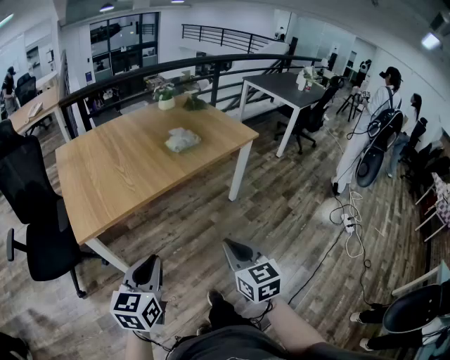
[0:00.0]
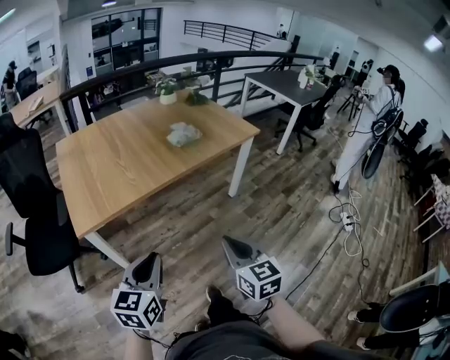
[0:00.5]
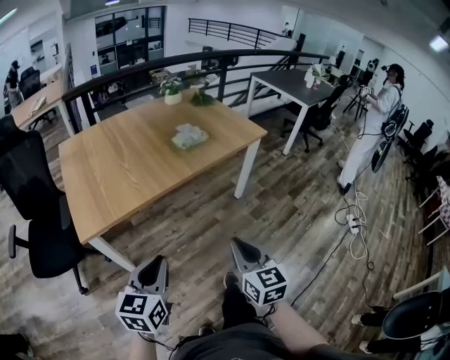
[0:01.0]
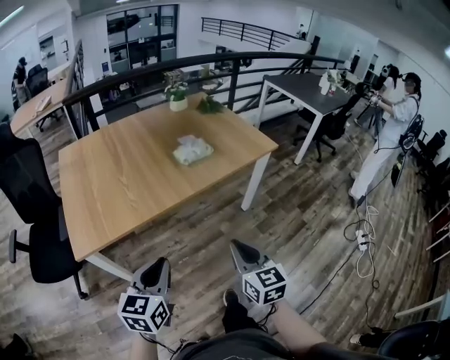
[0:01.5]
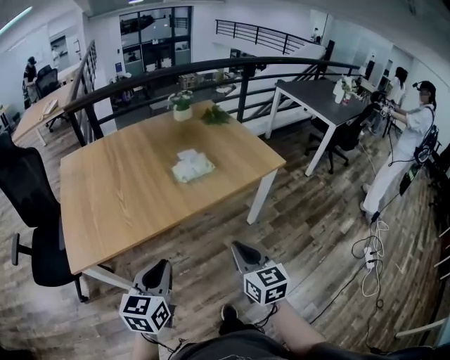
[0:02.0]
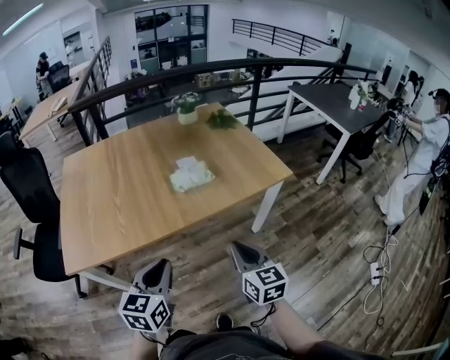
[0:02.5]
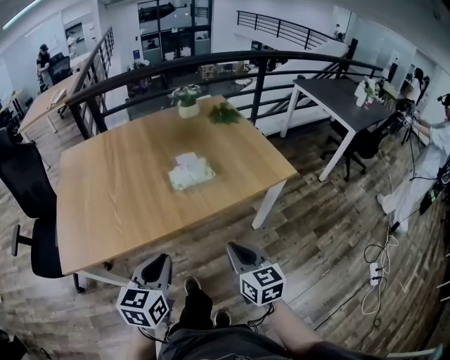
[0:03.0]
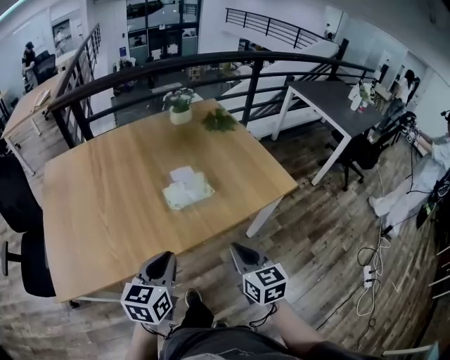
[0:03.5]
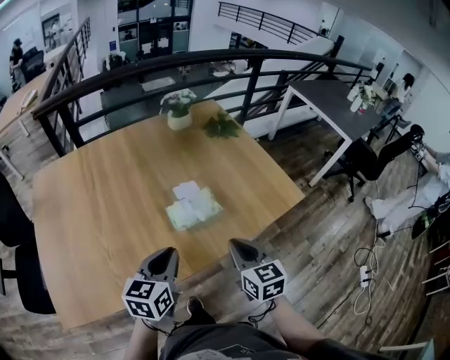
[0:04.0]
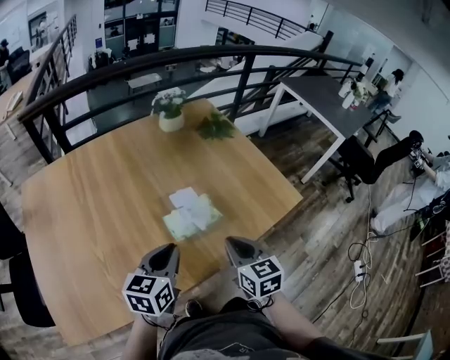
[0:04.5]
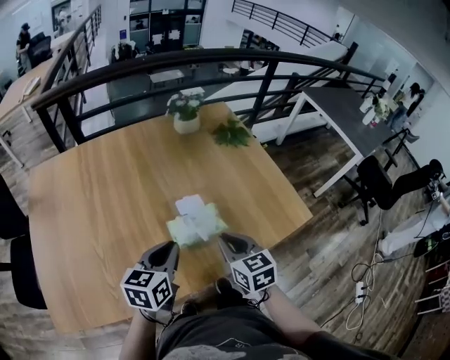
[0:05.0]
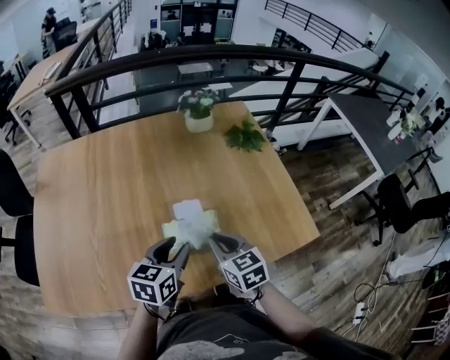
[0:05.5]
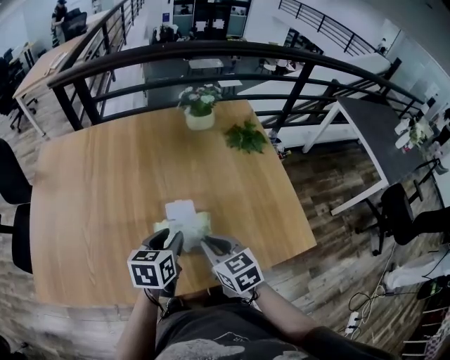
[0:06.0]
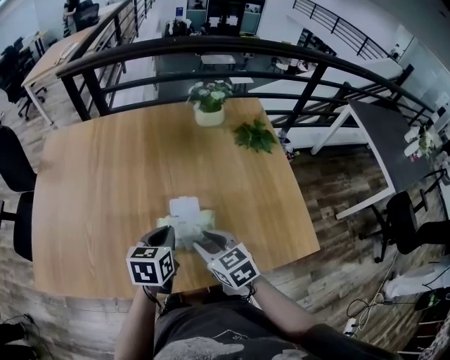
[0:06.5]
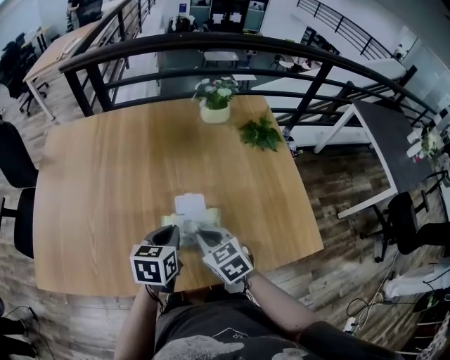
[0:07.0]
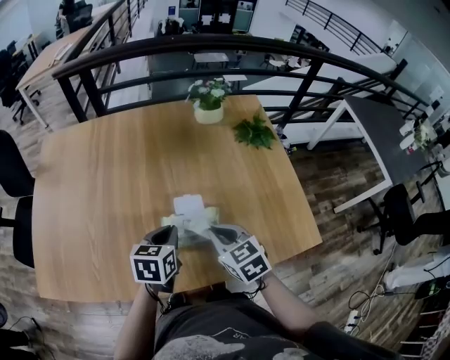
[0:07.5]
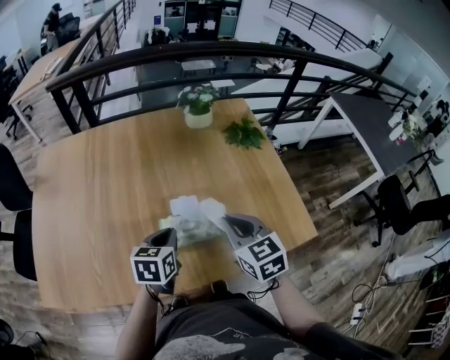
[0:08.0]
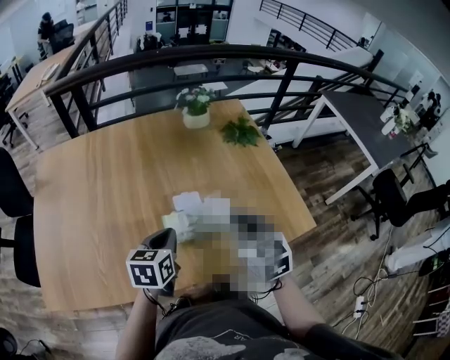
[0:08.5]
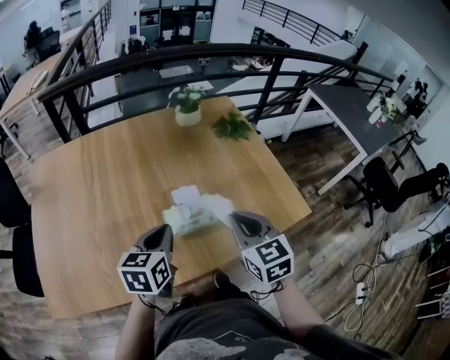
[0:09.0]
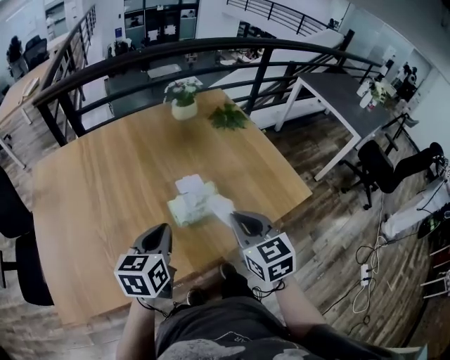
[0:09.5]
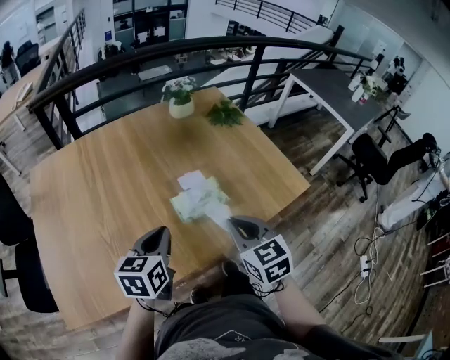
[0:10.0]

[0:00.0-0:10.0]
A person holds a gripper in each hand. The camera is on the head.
0:00.0 to 0:02.0: The two grippers go approximately 25 cm forward.
0:02.0 to 0:04.0: Both grippers move forward, approximately 30 cm.
0:04.0 to 0:06.0: The left gripper shifts by roughly 20 cm, rotates roughly 20 degrees, and opens its fingers; the right gripper ends up roughly 15 cm from where it was, and turns by roughly 30 degrees.
0:06.0 to 0:08.0: The left gripper closes up. Meanwhile the right gripper shifts some 10 cm upward, and opens, then closes once more.
0:08.0 to 0:10.0: The left gripper travels backward, to the left and upward by approximately 15 cm. The right gripper moves backward and to the left, roughly 15 cm.

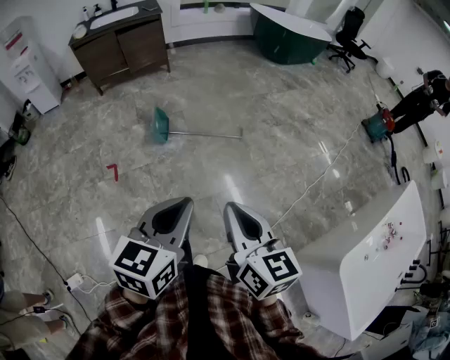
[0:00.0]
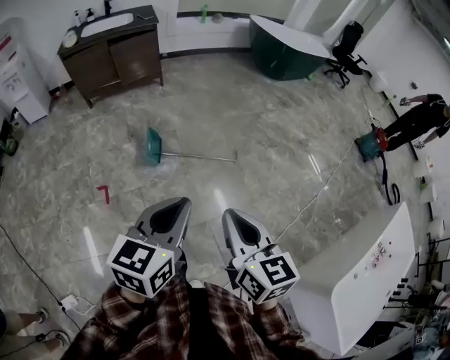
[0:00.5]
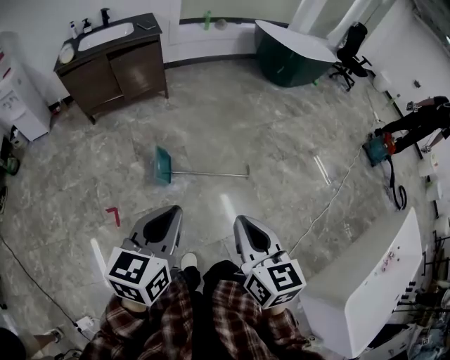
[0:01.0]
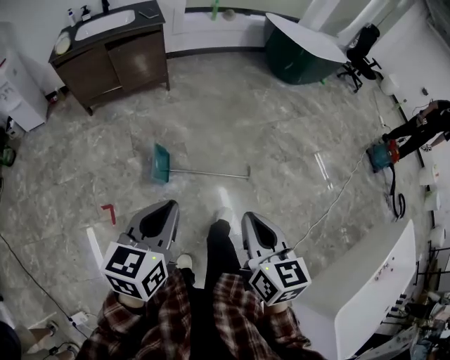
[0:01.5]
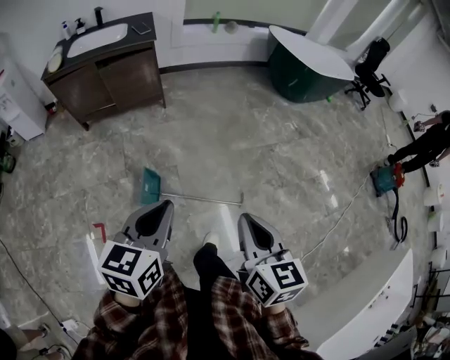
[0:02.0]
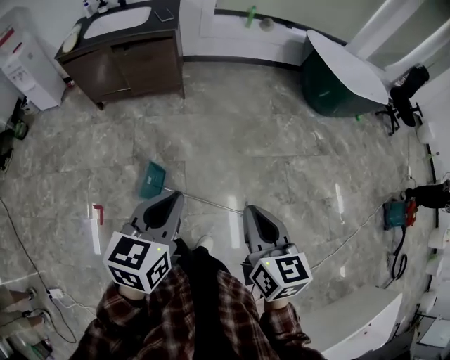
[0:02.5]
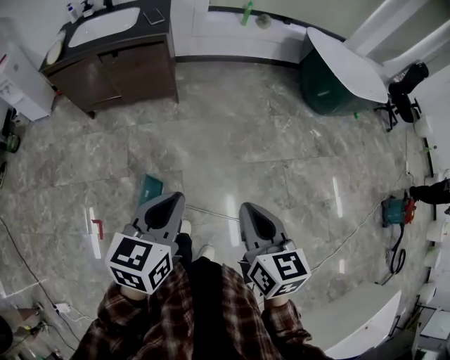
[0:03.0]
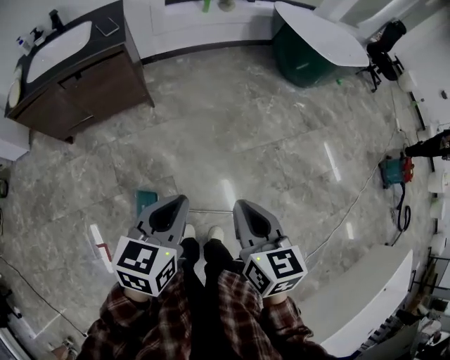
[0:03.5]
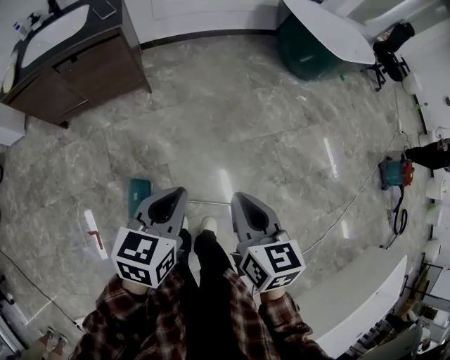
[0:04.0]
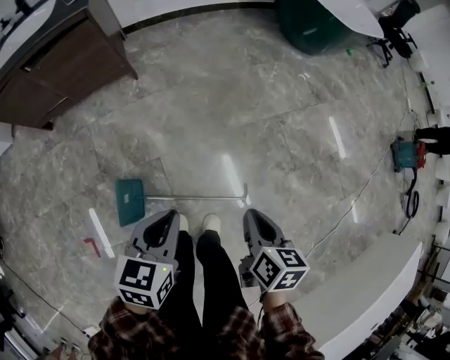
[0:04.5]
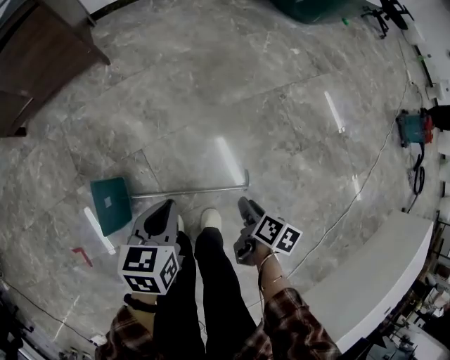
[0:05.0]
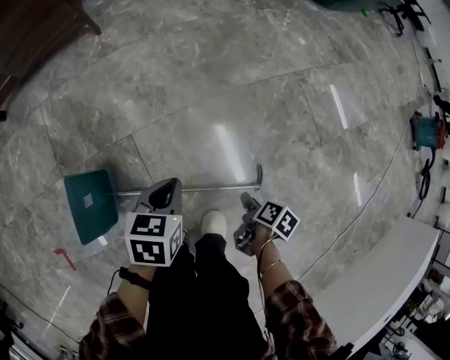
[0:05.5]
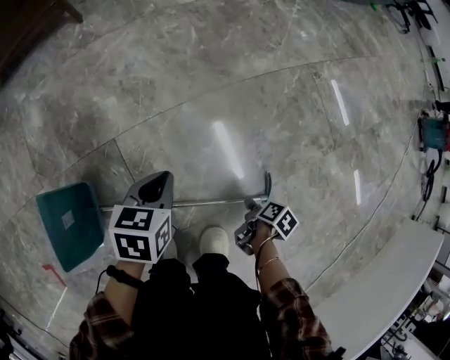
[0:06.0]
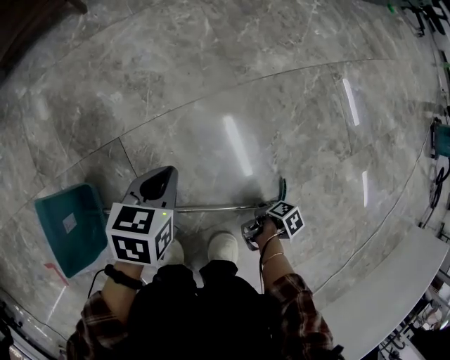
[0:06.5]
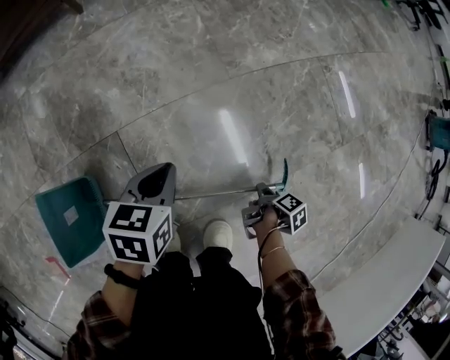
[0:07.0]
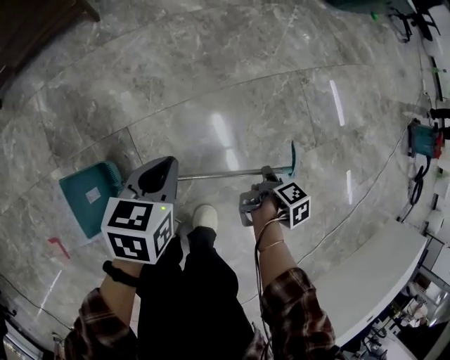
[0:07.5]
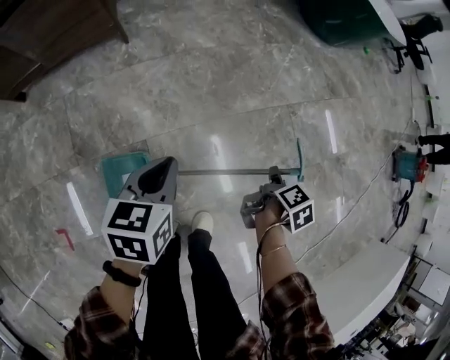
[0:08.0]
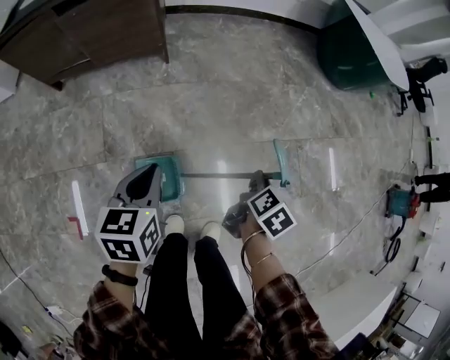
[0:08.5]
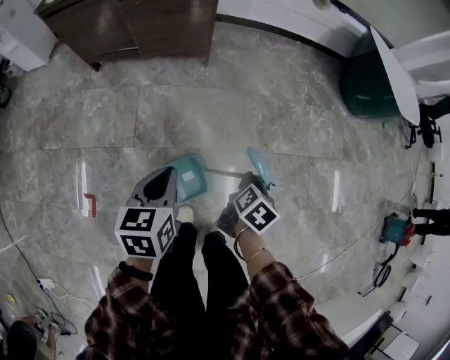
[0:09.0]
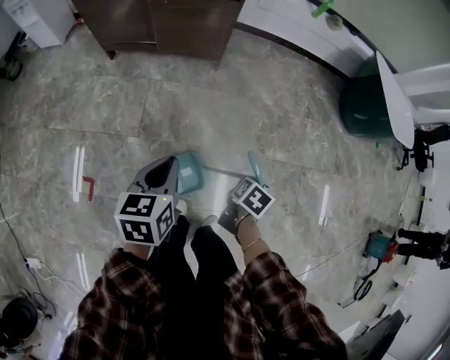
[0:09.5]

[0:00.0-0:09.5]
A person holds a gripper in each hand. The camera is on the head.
0:00.0 to 0:02.0: The two grippers travel together, forward, about 50 cm.
0:02.0 to 0:04.0: The two grippers go about 30 cm forward.
0:04.0 to 0:05.5: Both grippers travel together downward, approximately 70 cm. The right gripper rolls clockwise, seen from behind, by roughly 60 degrees, and opens its fingers; the left gripper rotates some 20 degrees.
0:05.5 to 0:07.5: The left gripper moves approximately 15 cm downward and comes back. Meanwhile the right gripper moves roughly 25 cm downward and comes back, and turns by about 30 degrees.
0:07.5 to 0:09.5: Both grippers move upward, about 35 cm. The left gripper rotates about 40 degrees, while the right gripper twists approximately 70 degrees counterclockwise, seen from behind.

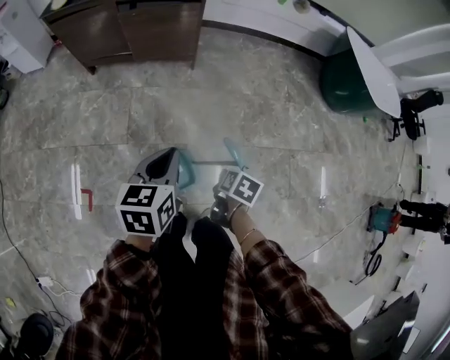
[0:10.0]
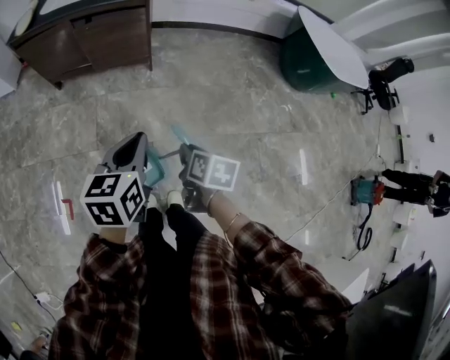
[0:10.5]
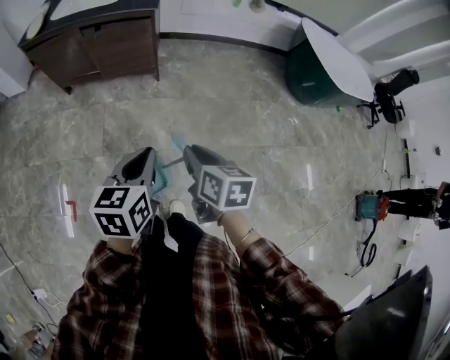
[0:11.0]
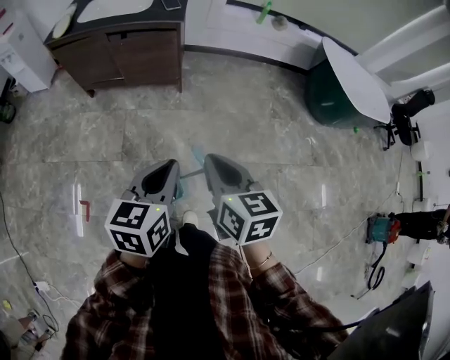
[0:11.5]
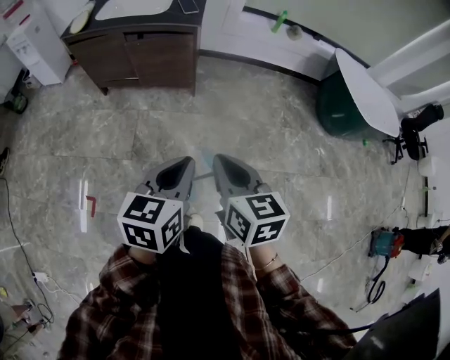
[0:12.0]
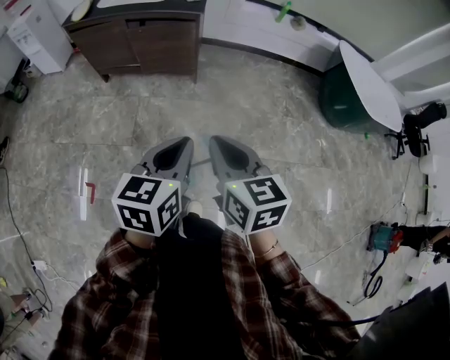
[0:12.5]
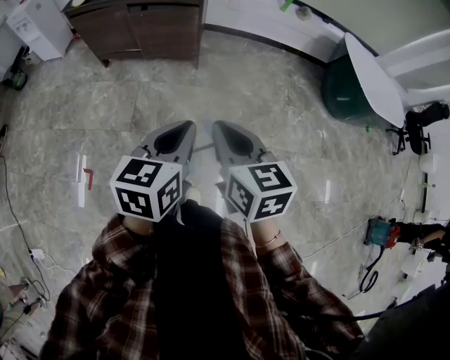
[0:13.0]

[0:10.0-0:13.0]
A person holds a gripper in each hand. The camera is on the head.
0:10.0 to 0:11.5: The left gripper is displaced upward and to the right by roughly 20 cm; the right gripper moves upward, roughly 30 cm, and points its fingers roughly 40 degrees further upward.
0:11.5 to 0:13.0: The grippers move only a little.

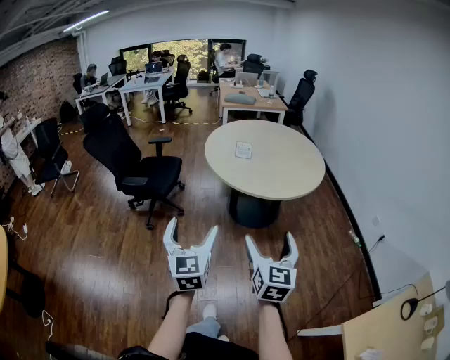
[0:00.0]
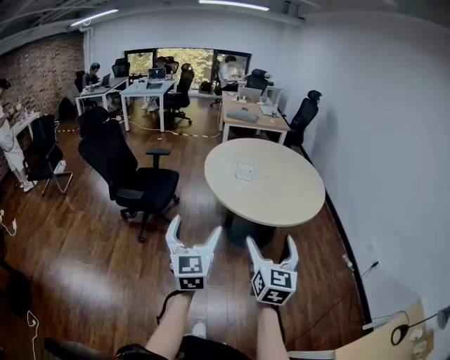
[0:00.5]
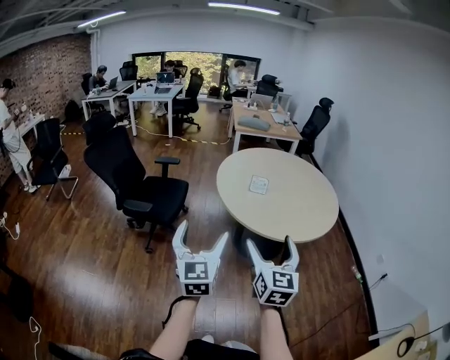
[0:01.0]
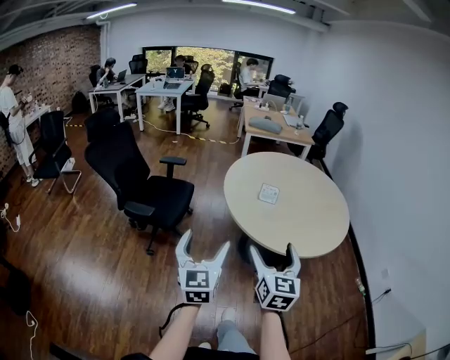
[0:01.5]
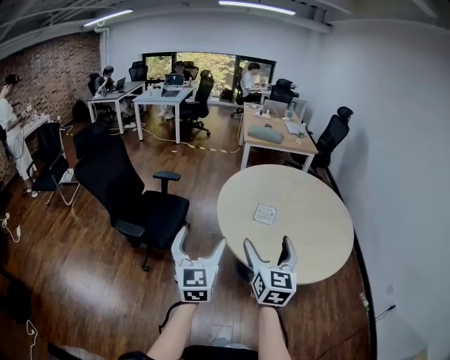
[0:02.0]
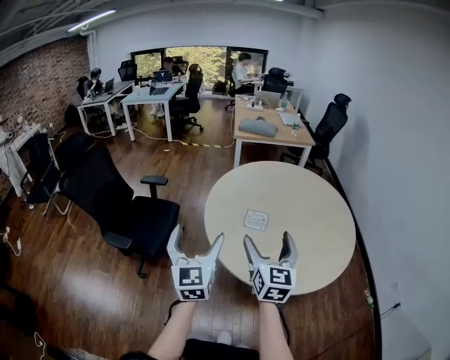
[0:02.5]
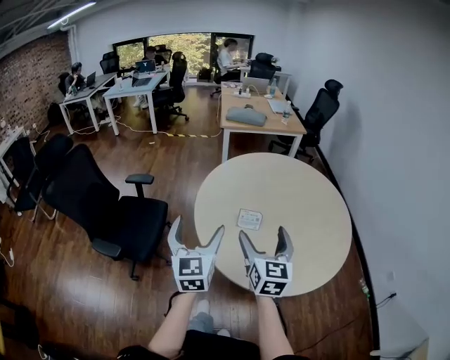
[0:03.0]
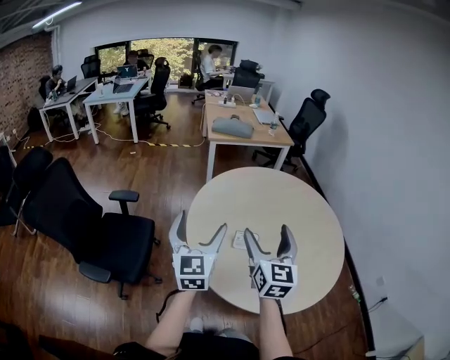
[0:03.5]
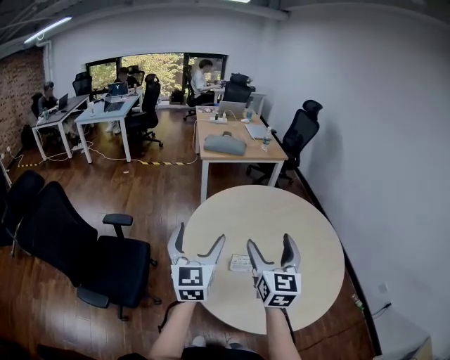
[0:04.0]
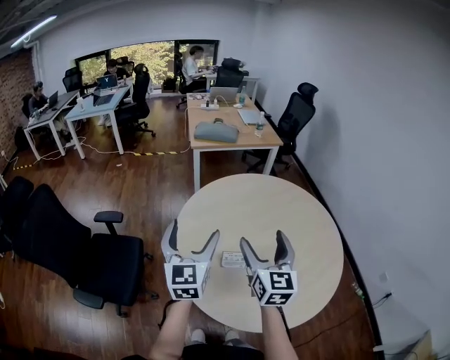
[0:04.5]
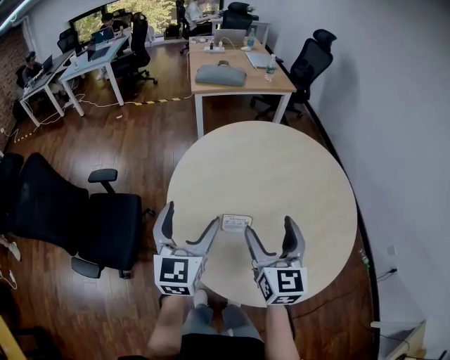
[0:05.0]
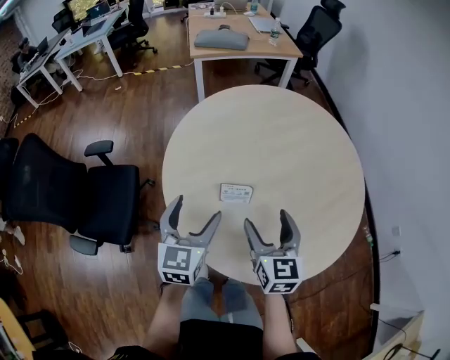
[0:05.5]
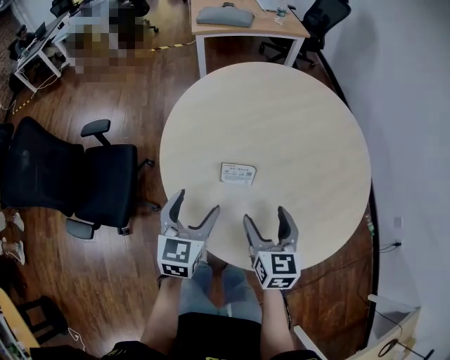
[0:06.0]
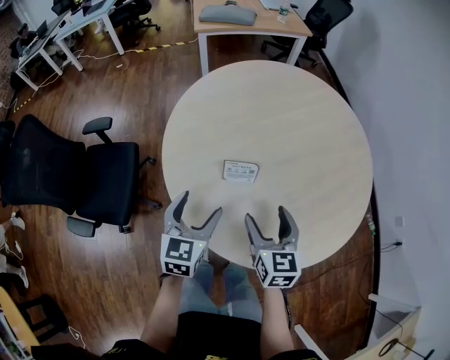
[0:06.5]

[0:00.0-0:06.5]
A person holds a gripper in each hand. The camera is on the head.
0:00.0 to 0:02.0: Both grippers travel together forward, some 40 cm.
0:02.0 to 0:04.5: Both grippers travel together forward, approximately 35 cm.
0:04.5 to 0:06.5: The grippers both shift downward by approximately 25 cm. The right gripper changes its angle by about 20 degrees. The left gripper changes its angle by roughly 30 degrees.
